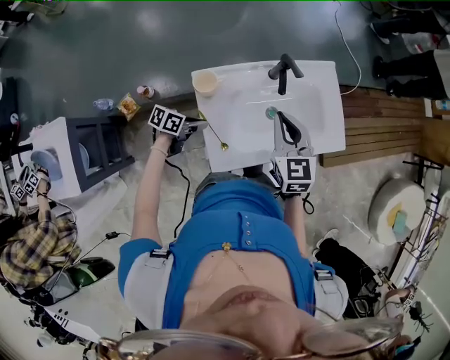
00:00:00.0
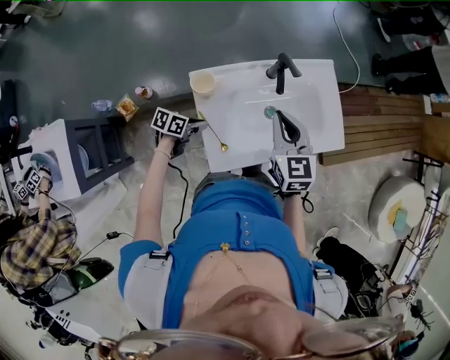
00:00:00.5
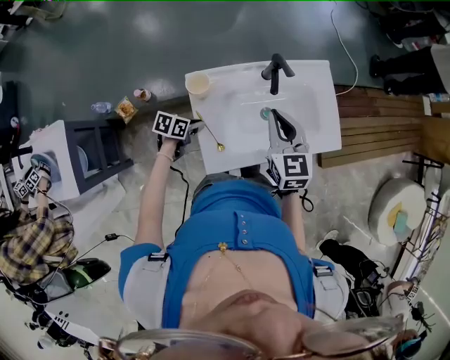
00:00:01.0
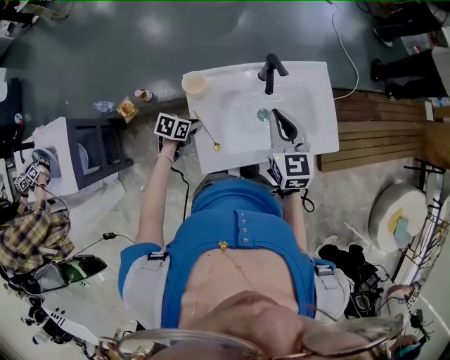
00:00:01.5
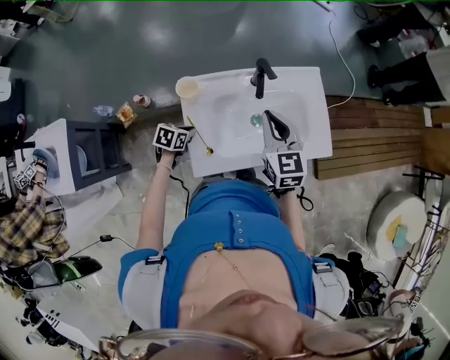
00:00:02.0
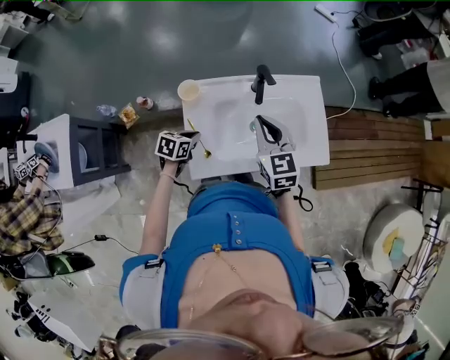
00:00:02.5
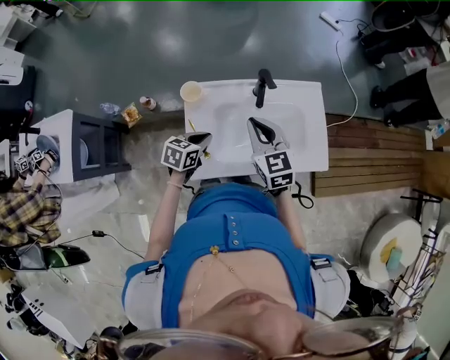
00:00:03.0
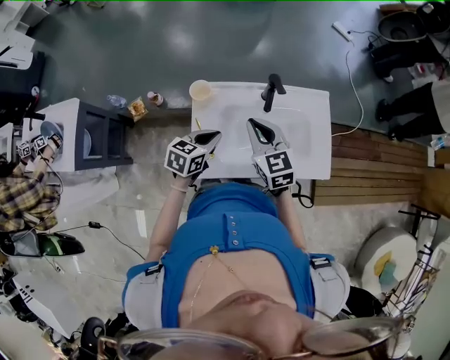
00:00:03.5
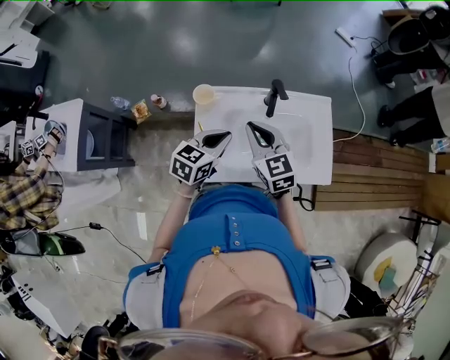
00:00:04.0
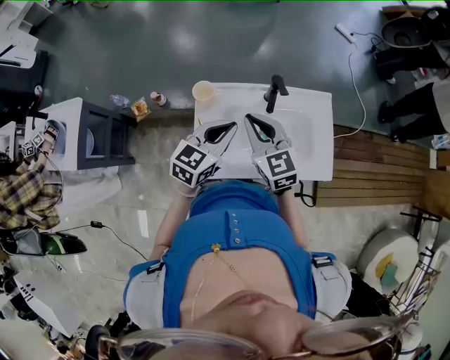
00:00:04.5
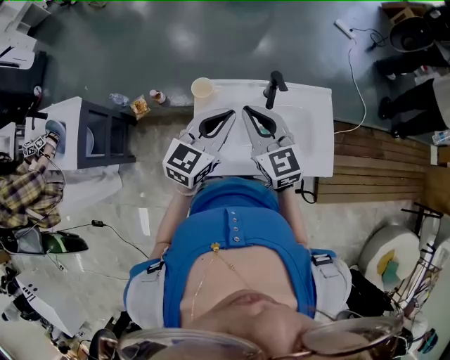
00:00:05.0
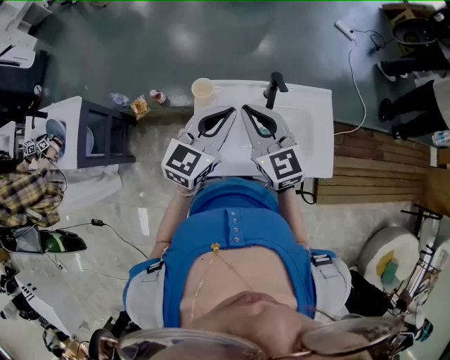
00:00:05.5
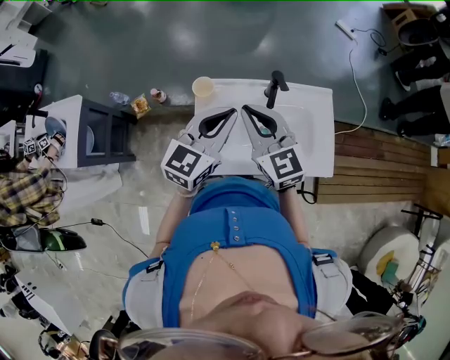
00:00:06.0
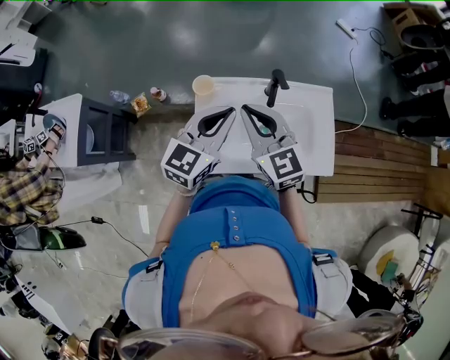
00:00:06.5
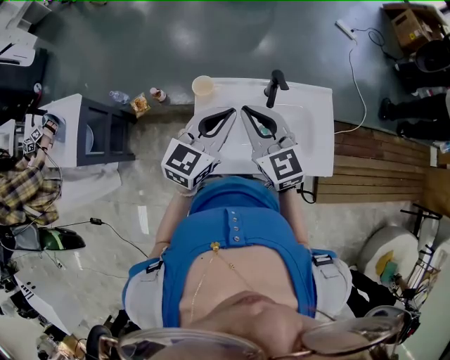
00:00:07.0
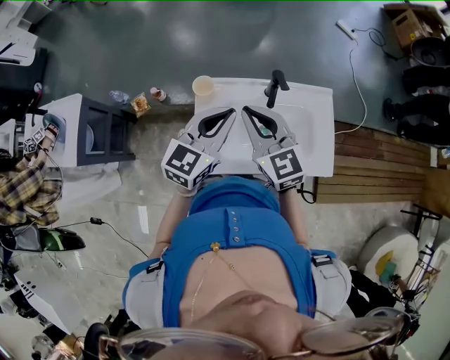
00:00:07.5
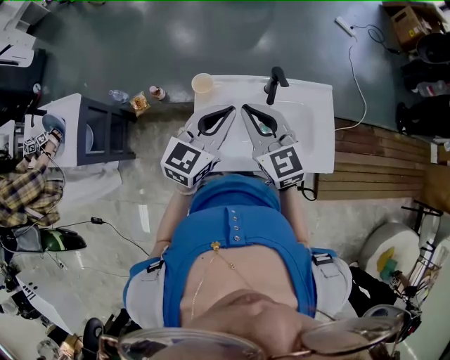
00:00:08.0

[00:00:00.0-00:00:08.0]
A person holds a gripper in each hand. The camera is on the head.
00:00:00.0 to 00:00:02.0: The right gripper ends up approximately 5 cm from where it was. Meanwhile the left gripper changes its angle by approximately 30 degrees.
00:00:02.0 to 00:00:04.0: The right gripper travels to the left by approximately 5 cm, and swivels some 20 degrees. The left gripper heads upward and to the right, covering approximately 25 cm, and turns by some 30 degrees.
00:00:04.0 to 00:00:06.0: The grippers both shift upward by some 10 cm. The left gripper turns by about 20 degrees.
00:00:06.0 to 00:00:08.0: Both grippers stay about where they are.

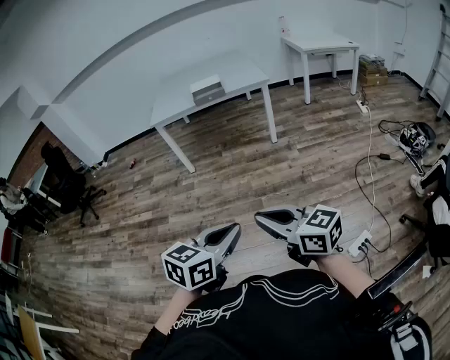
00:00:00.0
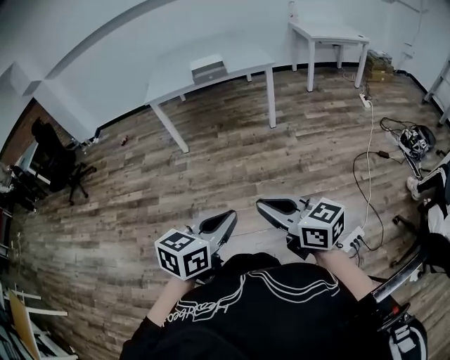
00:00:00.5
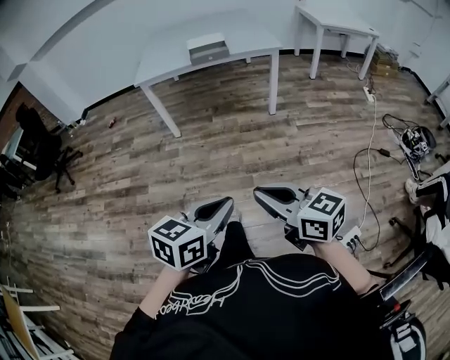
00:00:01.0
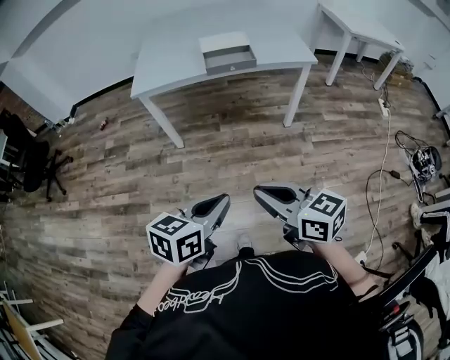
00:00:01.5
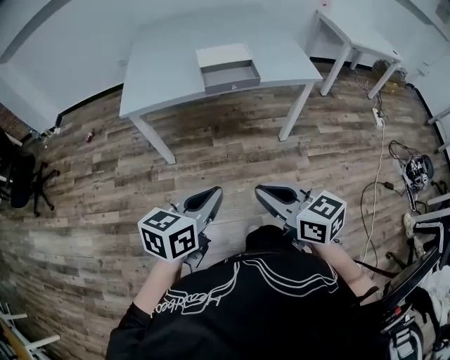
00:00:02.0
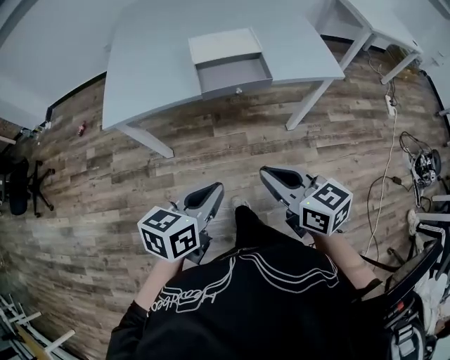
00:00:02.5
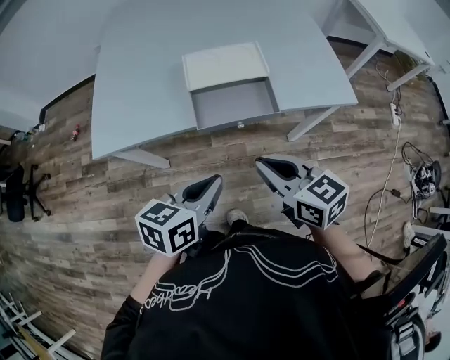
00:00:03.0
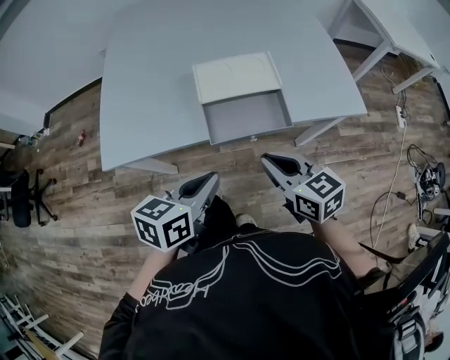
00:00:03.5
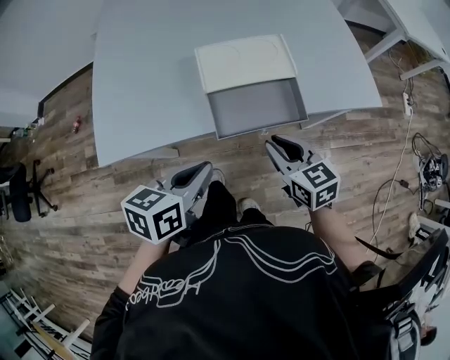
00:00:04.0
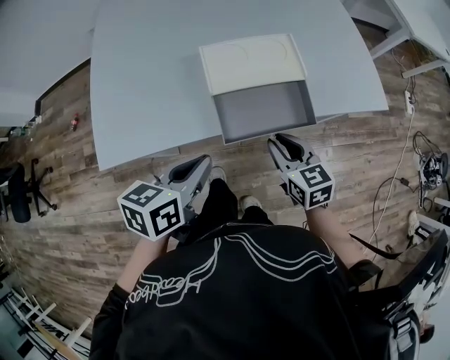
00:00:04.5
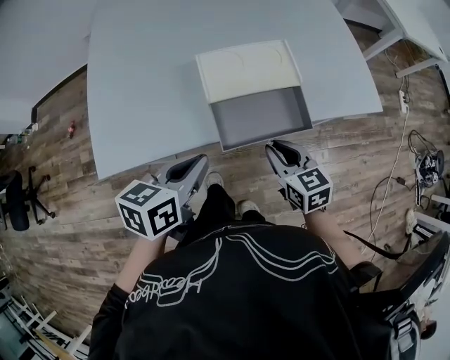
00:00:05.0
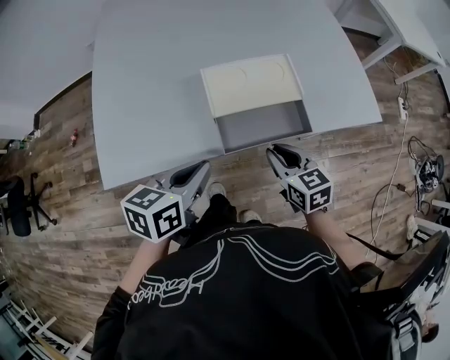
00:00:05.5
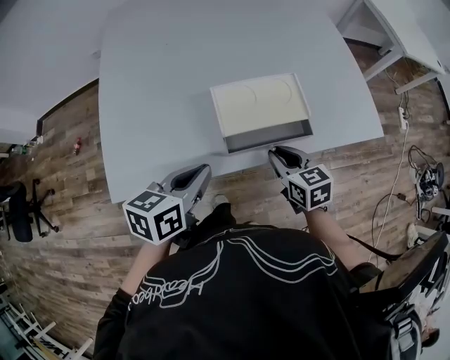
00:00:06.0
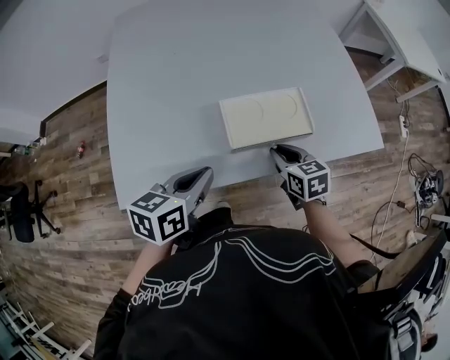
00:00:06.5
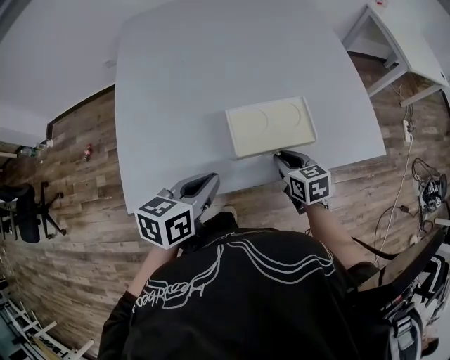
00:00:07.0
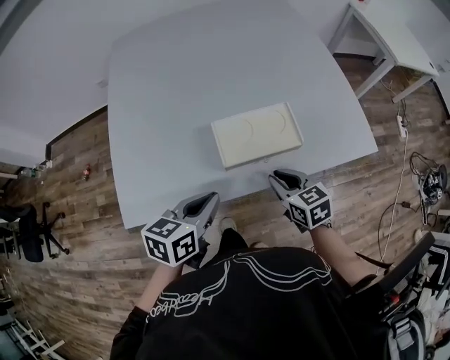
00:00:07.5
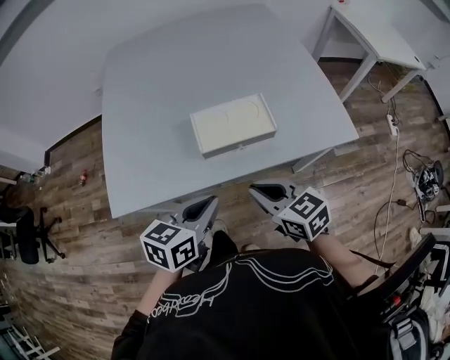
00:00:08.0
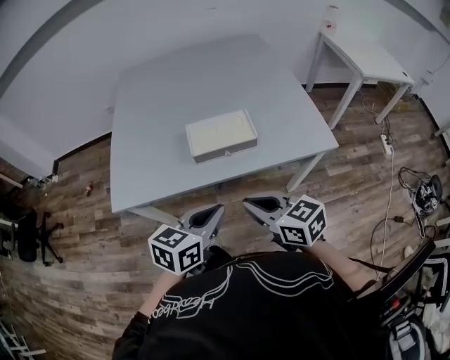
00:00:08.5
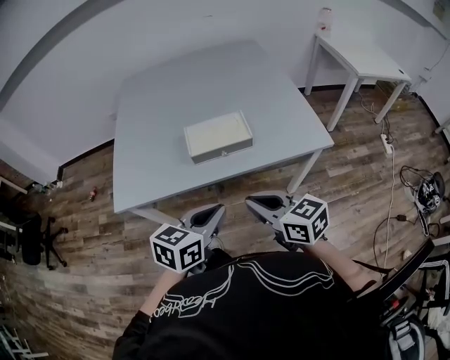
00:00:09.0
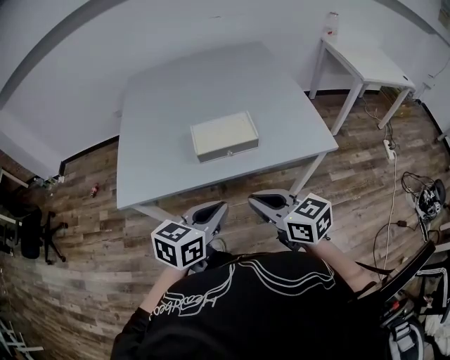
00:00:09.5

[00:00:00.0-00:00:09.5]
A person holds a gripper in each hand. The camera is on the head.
00:00:00.0 to 00:00:02.0: The two grippers travel together, forward, some 60 cm.
00:00:02.0 to 00:00:04.0: Both grippers move forward, approximately 40 cm.
00:00:04.0 to 00:00:05.5: The left gripper heads forward, covering some 5 cm.
00:00:07.5 to 00:00:09.5: The right gripper moves backward and upward, about 25 cm, and changes its angle by about 30 degrees. The left gripper goes roughly 20 cm backward, to the right and upward.

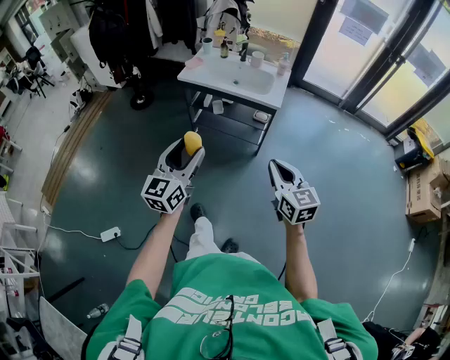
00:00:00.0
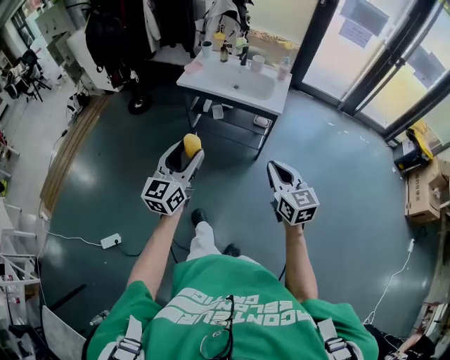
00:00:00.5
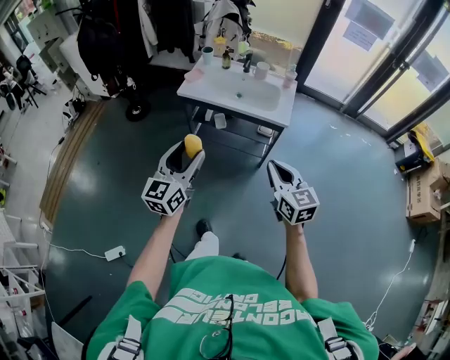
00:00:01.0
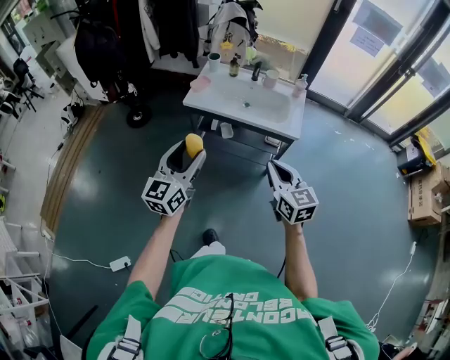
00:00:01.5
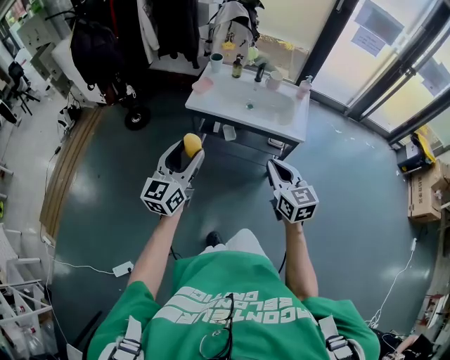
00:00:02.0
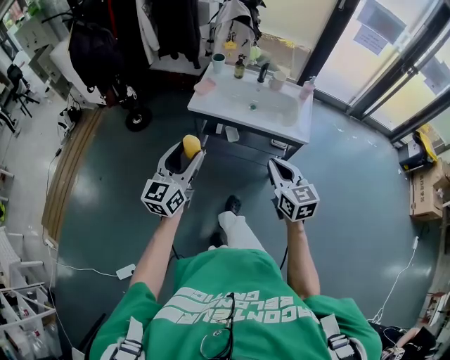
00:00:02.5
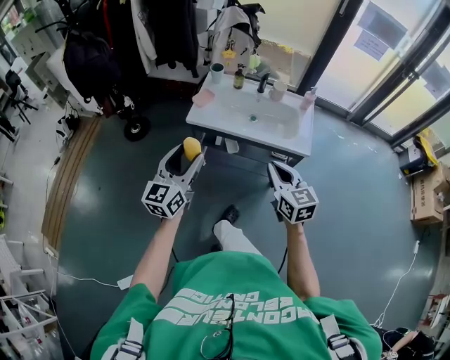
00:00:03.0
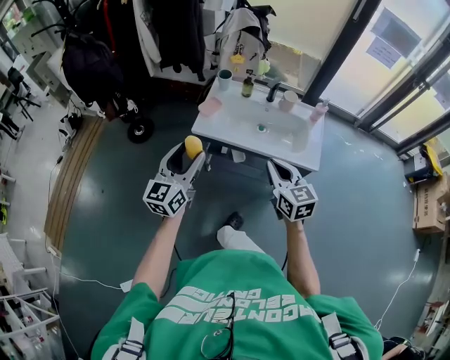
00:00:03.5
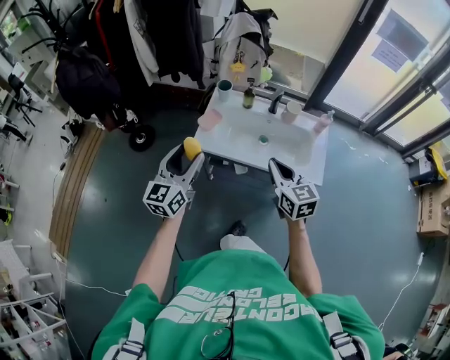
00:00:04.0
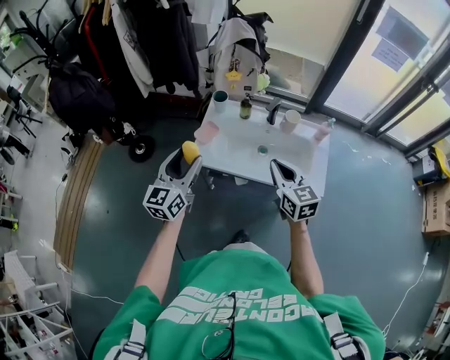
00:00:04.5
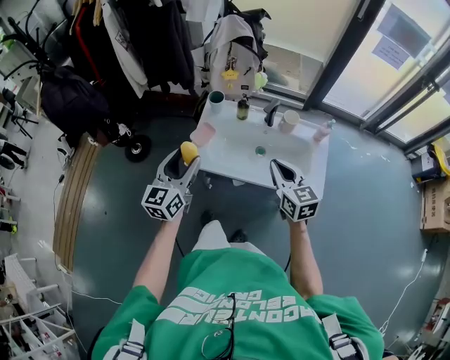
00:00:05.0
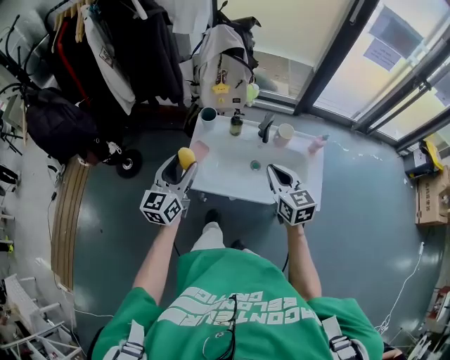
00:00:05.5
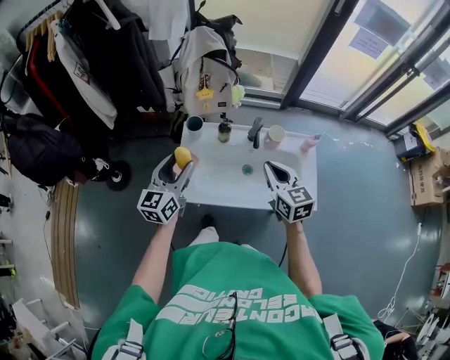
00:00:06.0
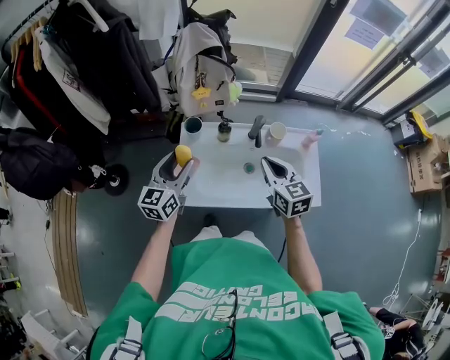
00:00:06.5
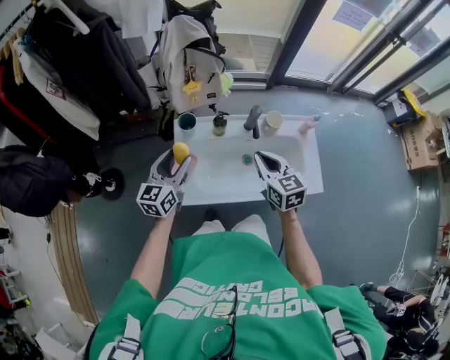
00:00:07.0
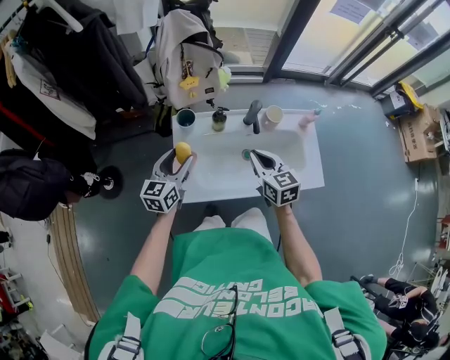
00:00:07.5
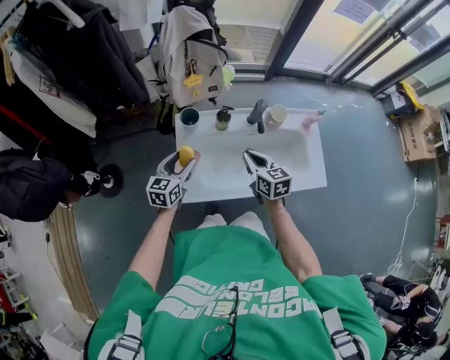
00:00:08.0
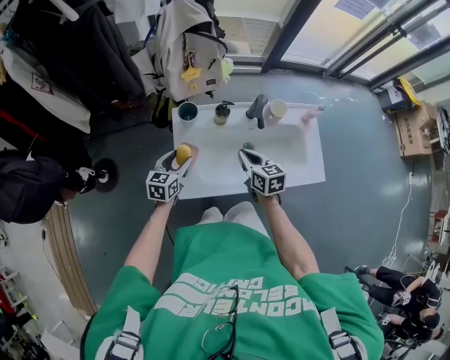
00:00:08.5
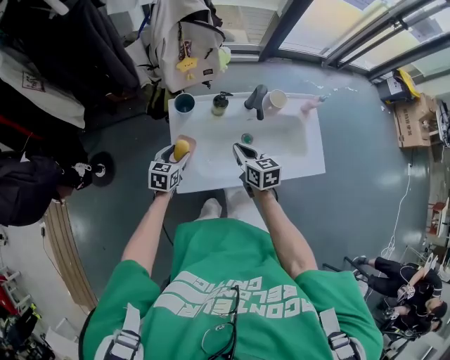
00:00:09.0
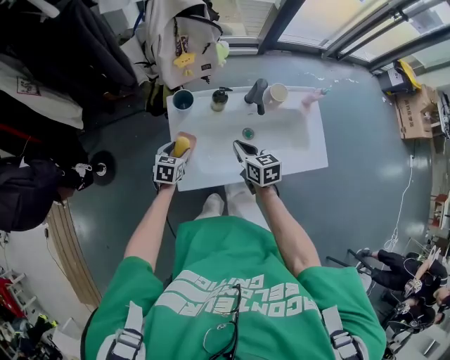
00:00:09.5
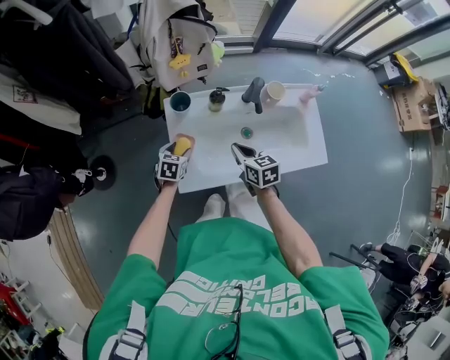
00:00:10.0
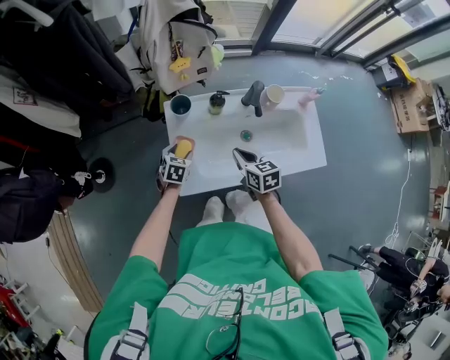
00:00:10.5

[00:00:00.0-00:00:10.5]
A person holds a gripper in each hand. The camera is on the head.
00:00:00.0 to 00:00:02.0: Both grippers move forward and to the left, some 30 cm.
00:00:02.0 to 00:00:04.0: Both grippers travel together forward, approximately 25 cm.
00:00:04.0 to 00:00:06.5: The grippers both shift forward by some 25 cm.
00:00:06.5 to 00:00:08.5: The right gripper heads downward and to the left, covering some 15 cm, while the left gripper heads downward, covering some 20 cm, and rotates approximately 30 degrees.
00:00:08.5 to 00:00:10.5: The left gripper heads downward, covering about 10 cm, and turns by roughly 30 degrees.
